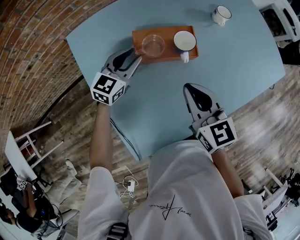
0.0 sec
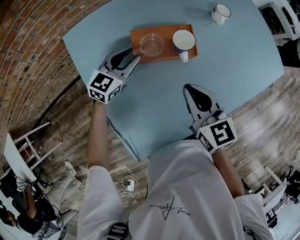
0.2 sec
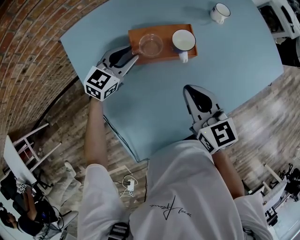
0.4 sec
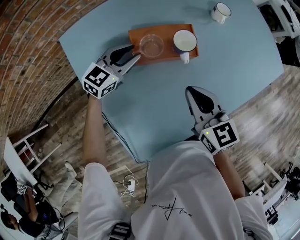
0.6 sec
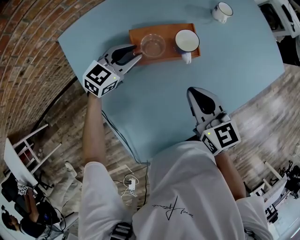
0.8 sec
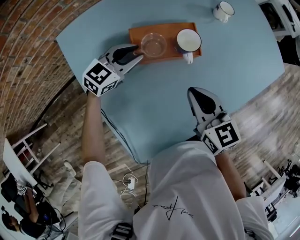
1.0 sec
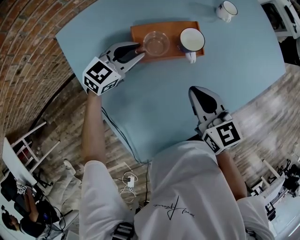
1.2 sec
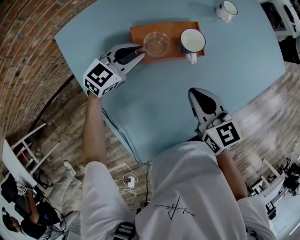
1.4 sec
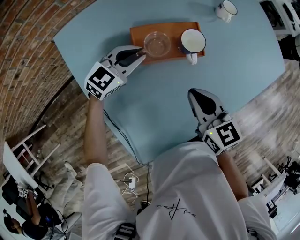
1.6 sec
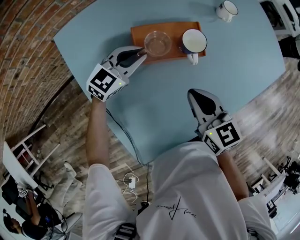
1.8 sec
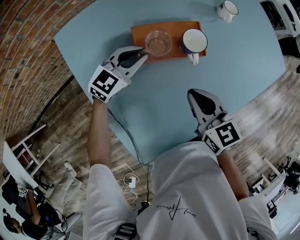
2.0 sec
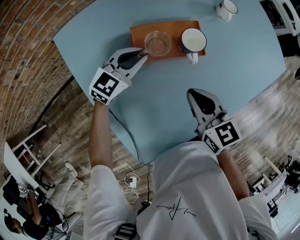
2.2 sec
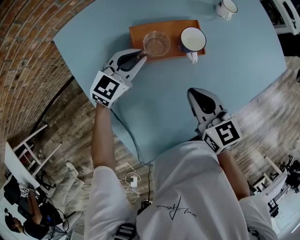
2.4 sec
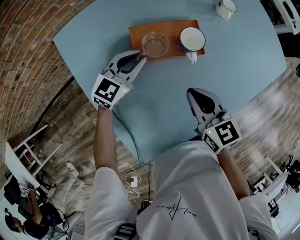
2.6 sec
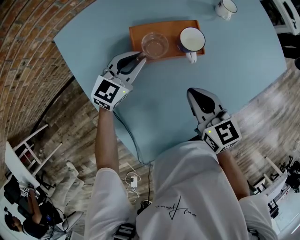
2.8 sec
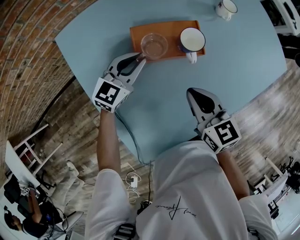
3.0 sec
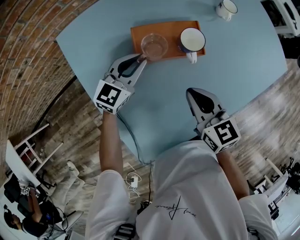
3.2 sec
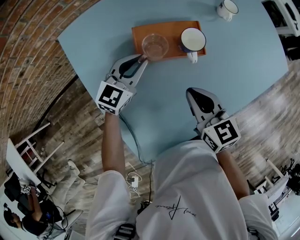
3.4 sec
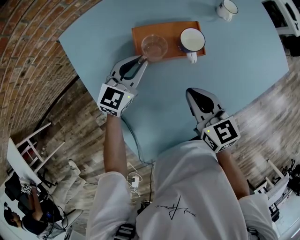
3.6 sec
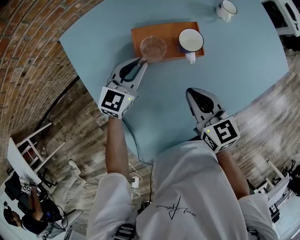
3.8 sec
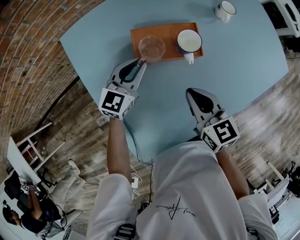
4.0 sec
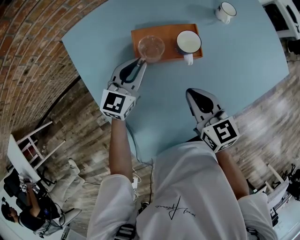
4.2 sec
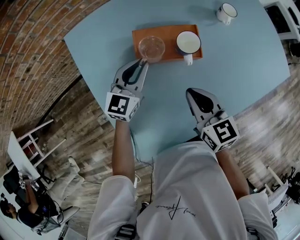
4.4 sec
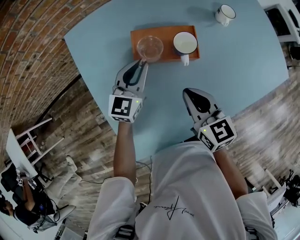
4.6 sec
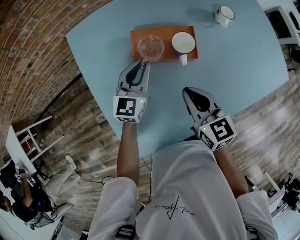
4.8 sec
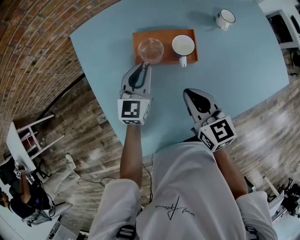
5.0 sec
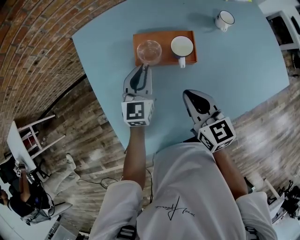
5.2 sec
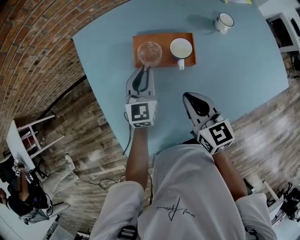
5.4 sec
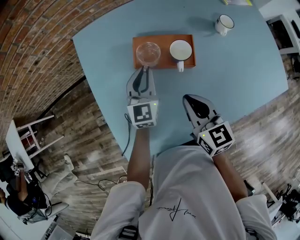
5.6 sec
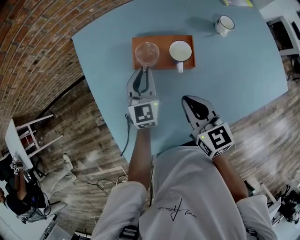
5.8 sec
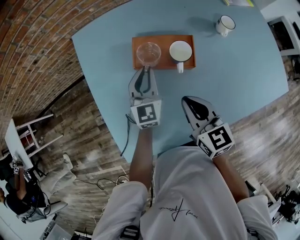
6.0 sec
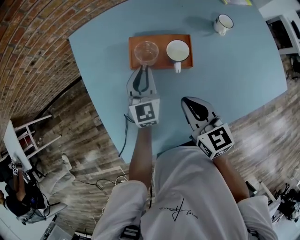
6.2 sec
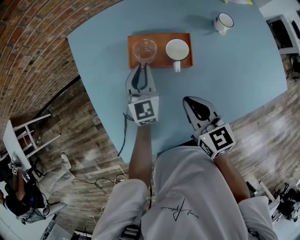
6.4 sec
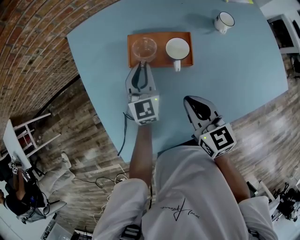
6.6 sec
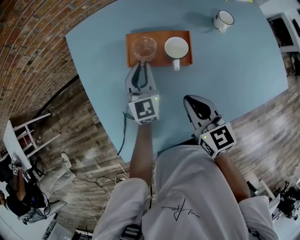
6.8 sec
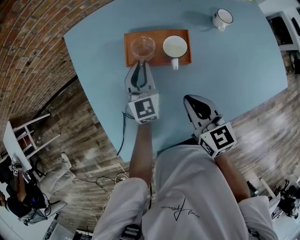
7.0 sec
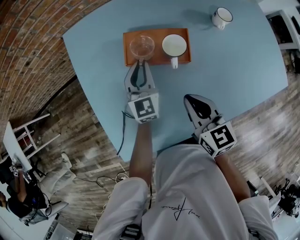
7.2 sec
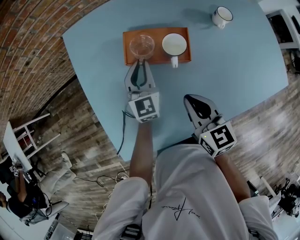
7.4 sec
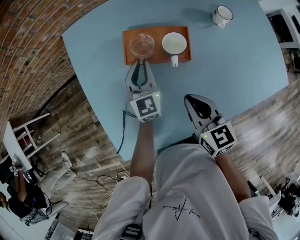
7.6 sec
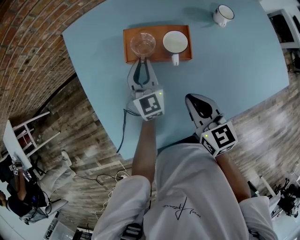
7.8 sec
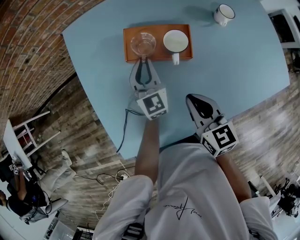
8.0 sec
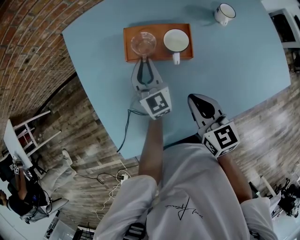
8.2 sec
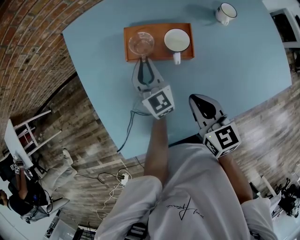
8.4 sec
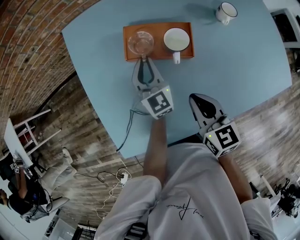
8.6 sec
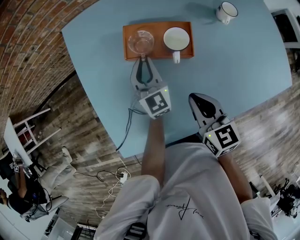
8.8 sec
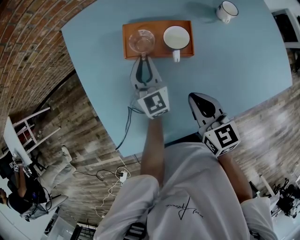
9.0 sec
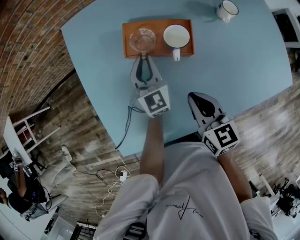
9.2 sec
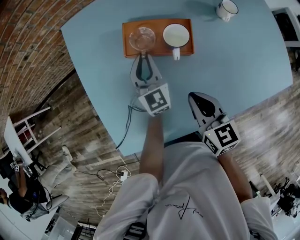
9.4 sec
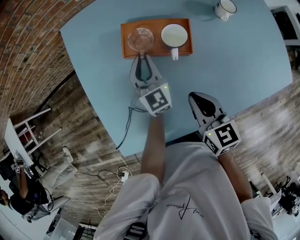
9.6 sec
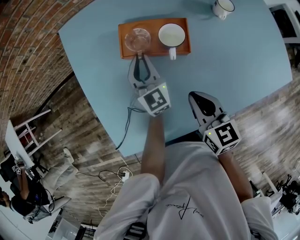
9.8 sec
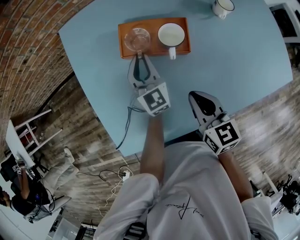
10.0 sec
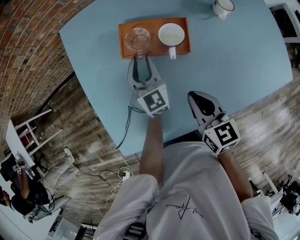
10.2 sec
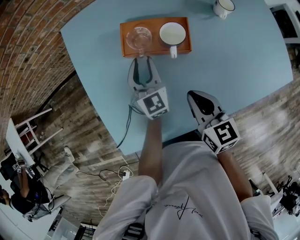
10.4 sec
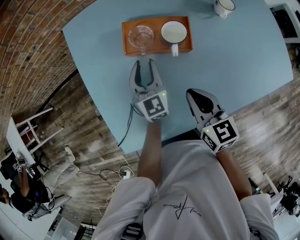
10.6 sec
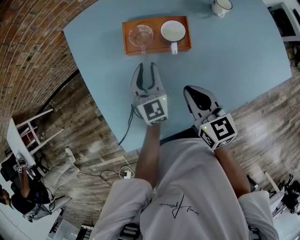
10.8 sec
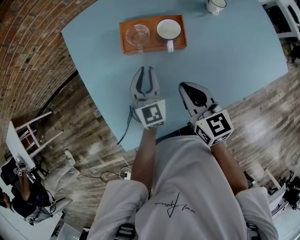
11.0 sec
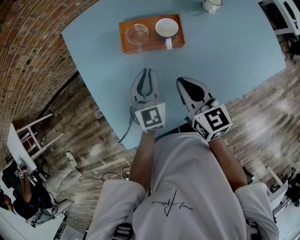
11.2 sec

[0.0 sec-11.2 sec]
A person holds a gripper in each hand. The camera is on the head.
0.0 sec to 1.6 sec: The right gripper moves downward, approximately 5 cm.
1.6 sec to 3.2 sec: The grippers stay close to where they were, moving slightly.
3.2 sec to 4.8 sec: The left gripper rotates about 30 degrees.
4.8 sec to 6.4 sec: The left gripper swivels approximately 20 degrees.
6.4 sec to 9.6 sec: There are only small adjustments of the grippers.
9.6 sec to 11.2 sec: The left gripper goes roughly 10 cm backward.

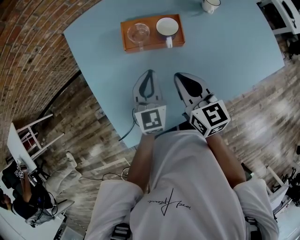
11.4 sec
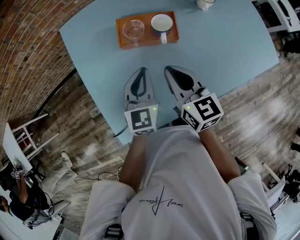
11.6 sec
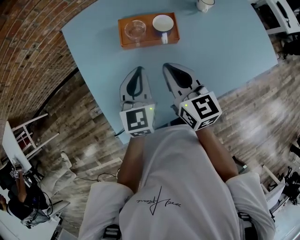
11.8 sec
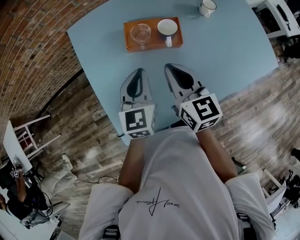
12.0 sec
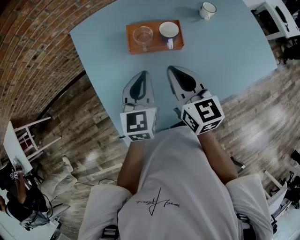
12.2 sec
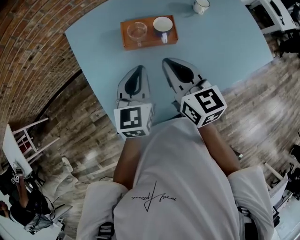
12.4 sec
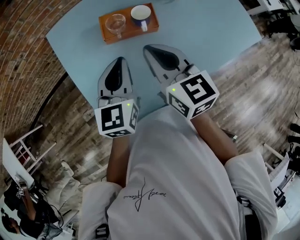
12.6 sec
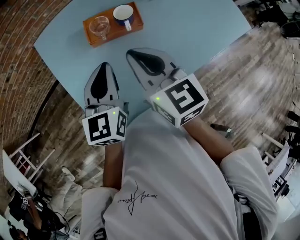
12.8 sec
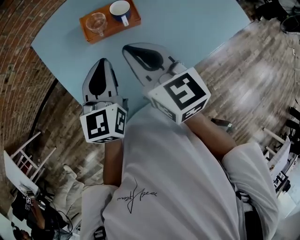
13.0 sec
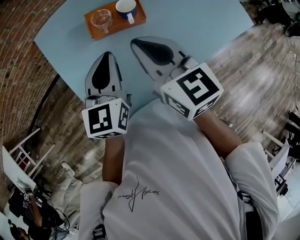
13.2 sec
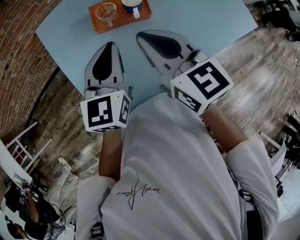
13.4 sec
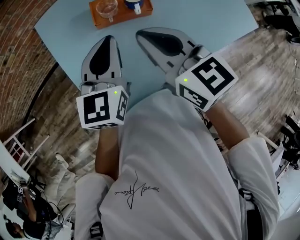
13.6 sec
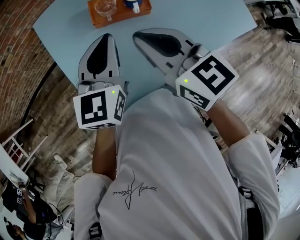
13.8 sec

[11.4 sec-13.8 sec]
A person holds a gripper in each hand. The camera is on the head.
11.4 sec to 12.6 sec: Both grippers travel together upward, about 10 cm.
12.6 sec to 13.8 sec: The grippers move only a little.

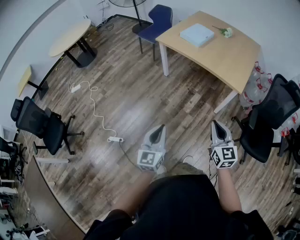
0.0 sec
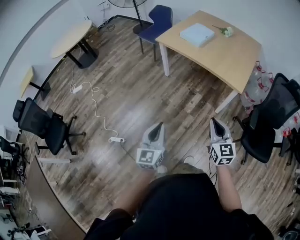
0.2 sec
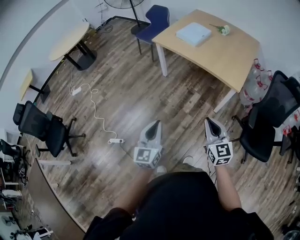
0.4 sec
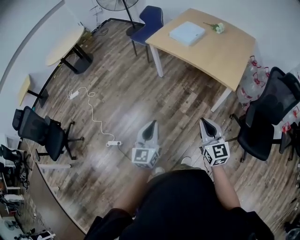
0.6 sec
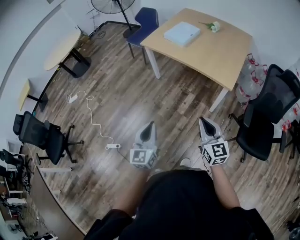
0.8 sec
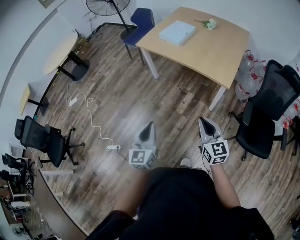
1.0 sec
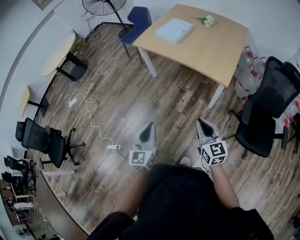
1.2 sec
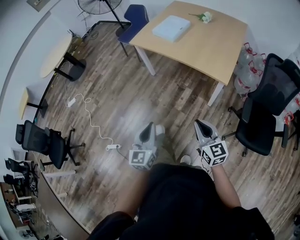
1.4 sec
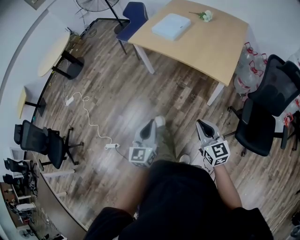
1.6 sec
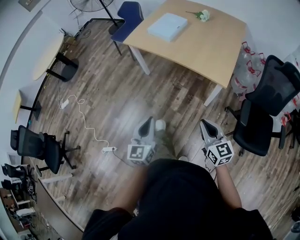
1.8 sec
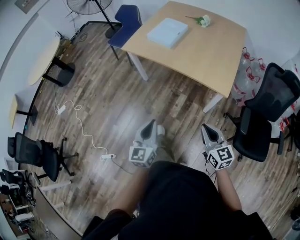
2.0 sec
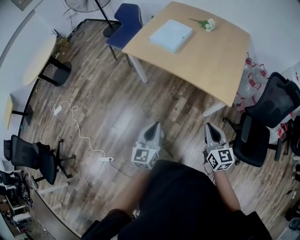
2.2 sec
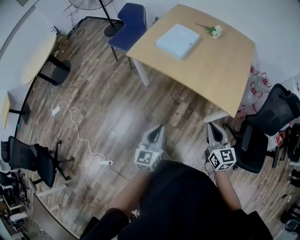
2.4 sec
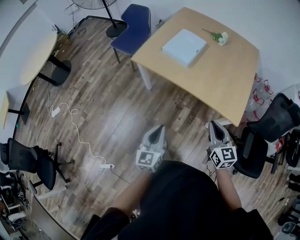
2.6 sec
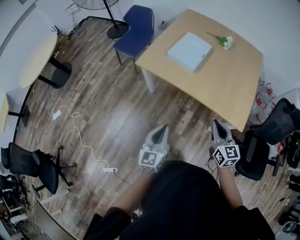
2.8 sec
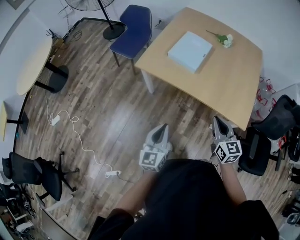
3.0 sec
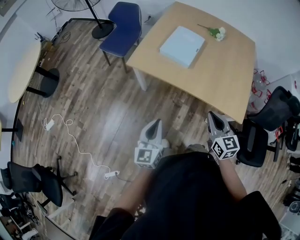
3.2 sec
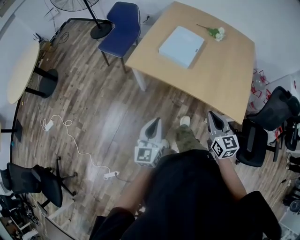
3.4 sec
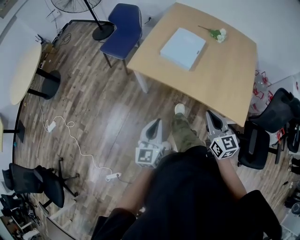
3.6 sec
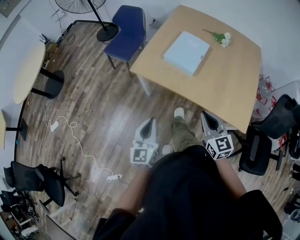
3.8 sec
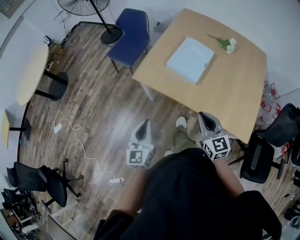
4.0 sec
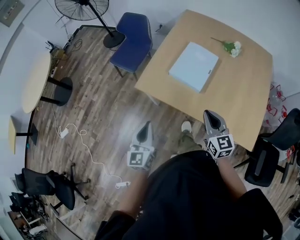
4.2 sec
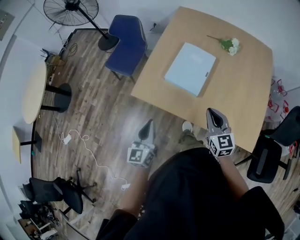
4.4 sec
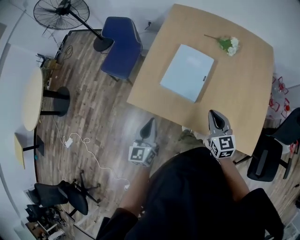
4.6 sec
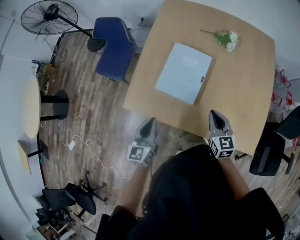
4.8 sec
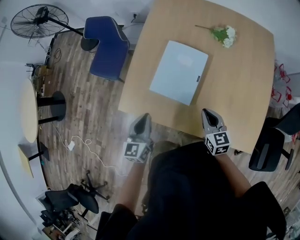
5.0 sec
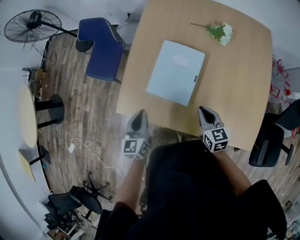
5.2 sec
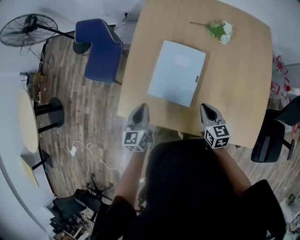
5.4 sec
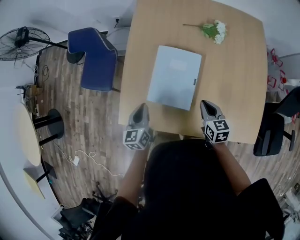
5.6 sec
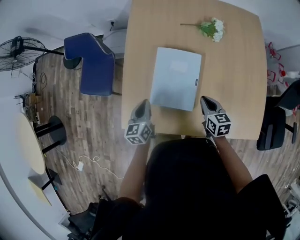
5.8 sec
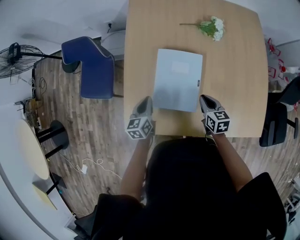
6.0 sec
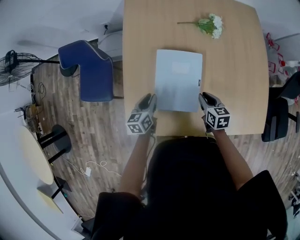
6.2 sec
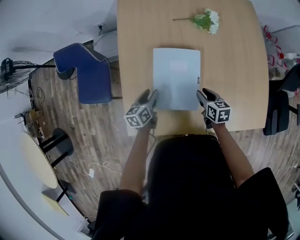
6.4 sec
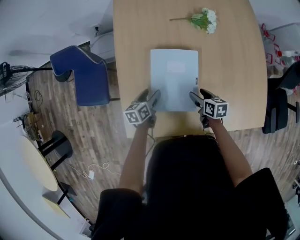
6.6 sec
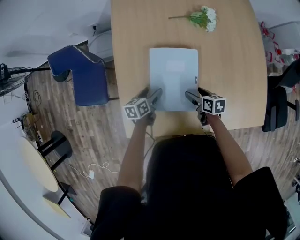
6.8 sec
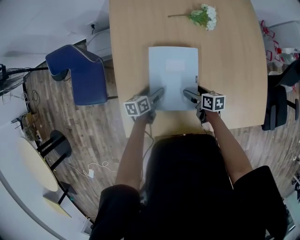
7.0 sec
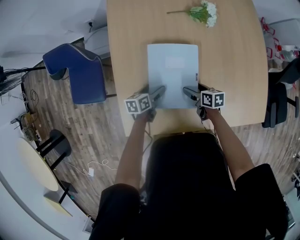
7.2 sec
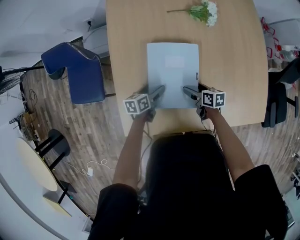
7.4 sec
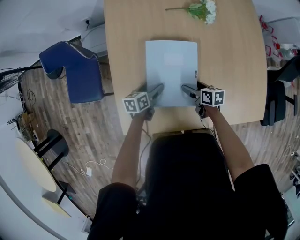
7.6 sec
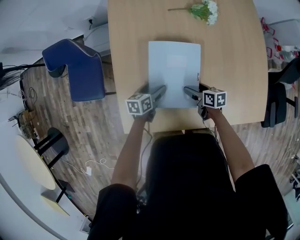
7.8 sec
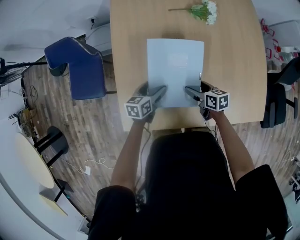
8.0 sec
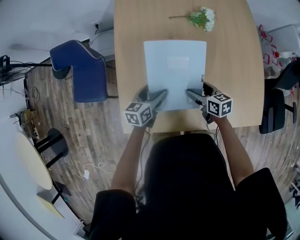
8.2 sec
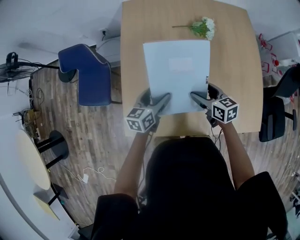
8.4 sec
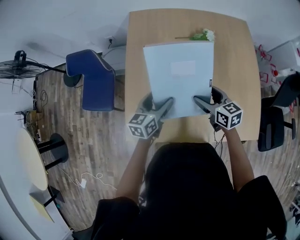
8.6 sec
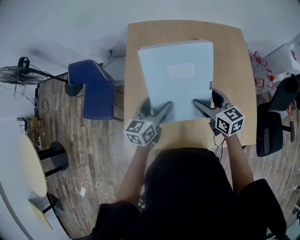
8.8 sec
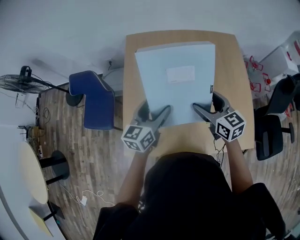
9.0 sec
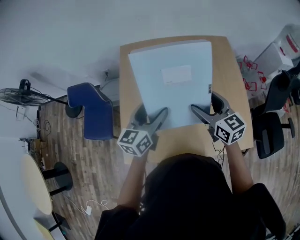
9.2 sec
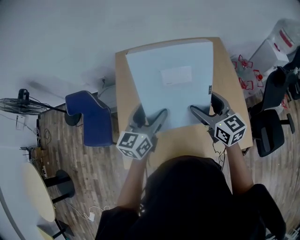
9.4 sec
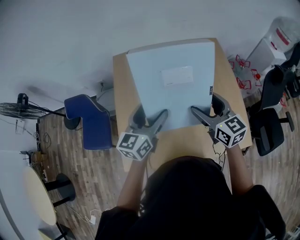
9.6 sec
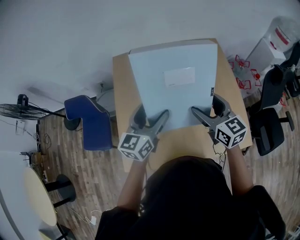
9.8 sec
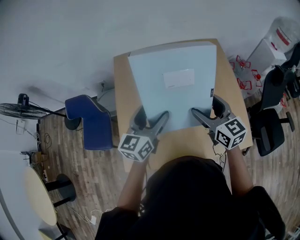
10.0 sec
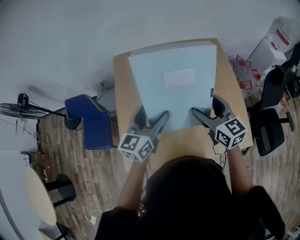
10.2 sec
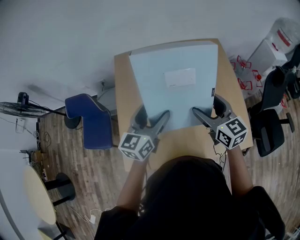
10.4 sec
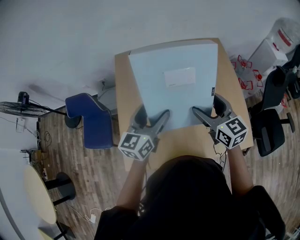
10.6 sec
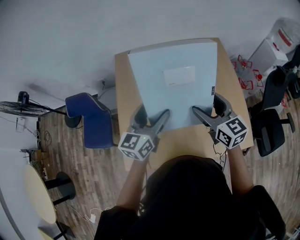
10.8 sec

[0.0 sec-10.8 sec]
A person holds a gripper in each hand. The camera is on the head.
0.0 sec to 1.6 sec: The left gripper travels to the right and forward by roughly 25 cm; the right gripper travels to the right, forward and downward by some 20 cm.
1.6 sec to 3.0 sec: Both grippers are carried forward and to the left, roughly 50 cm.
3.0 sec to 4.6 sec: The grippers both shift forward by approximately 40 cm.
4.6 sec to 6.2 sec: The two grippers go roughly 35 cm forward and downward. The right gripper turns by approximately 40 degrees, while the left gripper changes its angle by about 30 degrees.
6.2 sec to 7.8 sec: Both grippers travel together downward, approximately 10 cm. The right gripper changes its angle by about 20 degrees, and opens its fingers; the left gripper swivels some 20 degrees, and opens.
7.8 sec to 9.2 sec: The grippers both shift upward by roughly 40 cm. The right gripper changes its angle by about 50 degrees. The left gripper swivels about 40 degrees.
9.2 sec to 10.8 sec: The grippers stay close to where they were, moving slightly.
